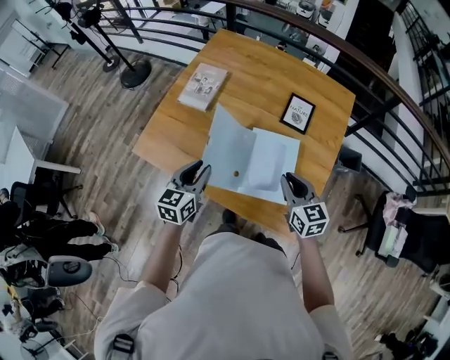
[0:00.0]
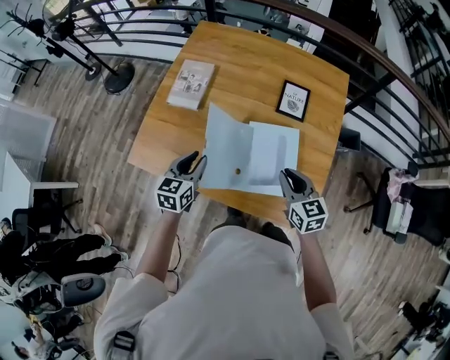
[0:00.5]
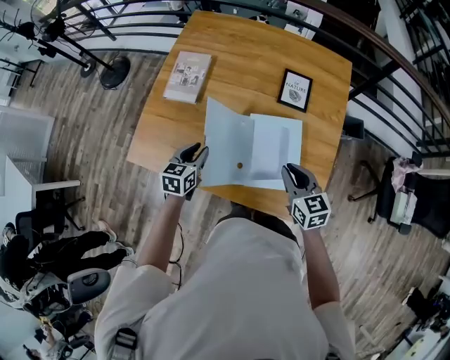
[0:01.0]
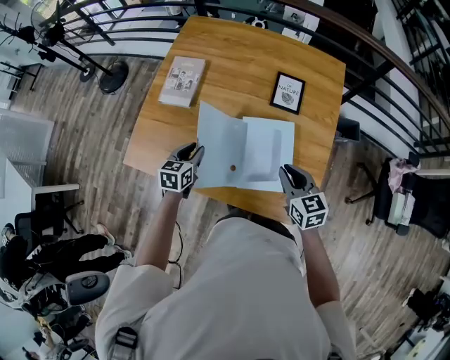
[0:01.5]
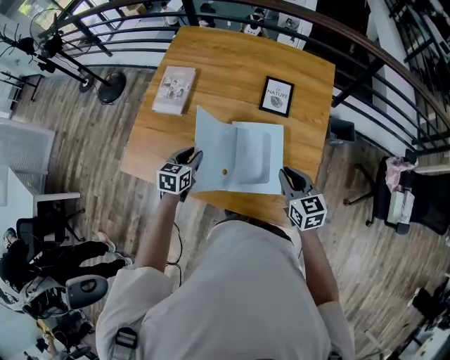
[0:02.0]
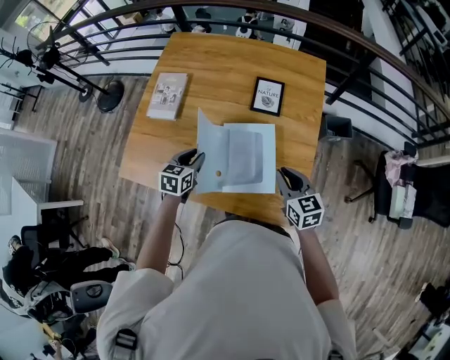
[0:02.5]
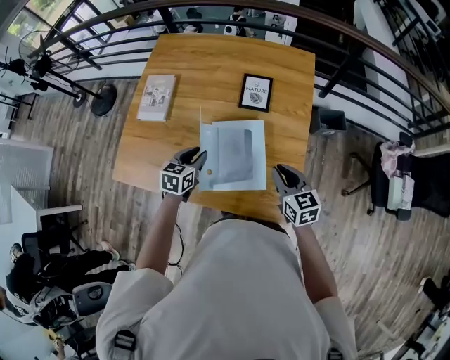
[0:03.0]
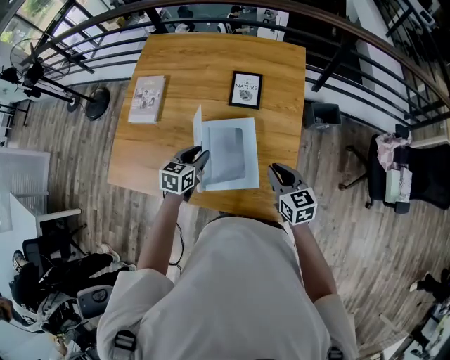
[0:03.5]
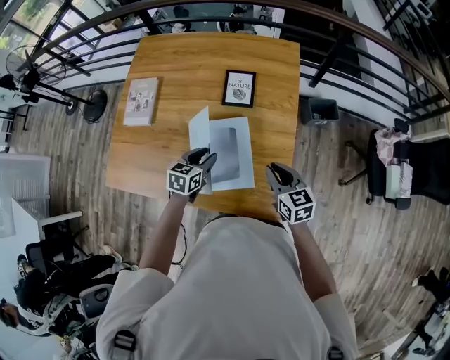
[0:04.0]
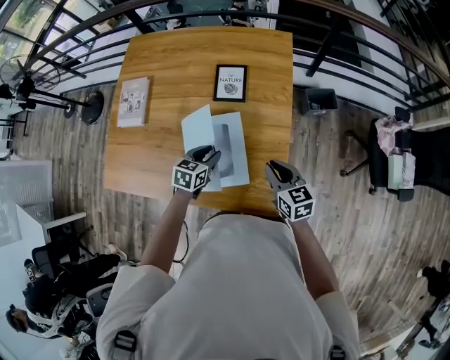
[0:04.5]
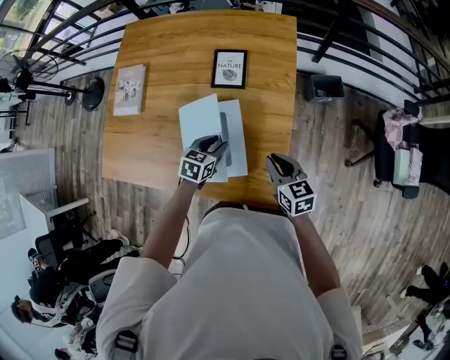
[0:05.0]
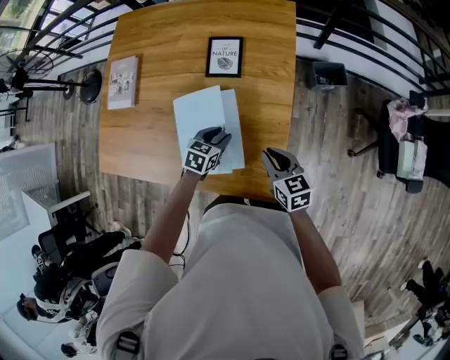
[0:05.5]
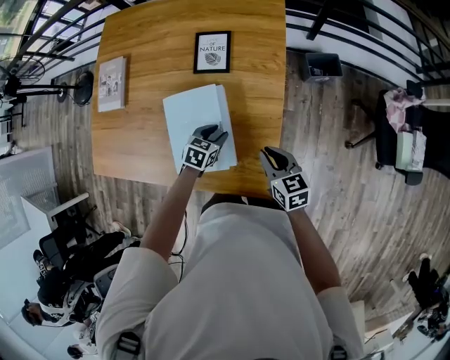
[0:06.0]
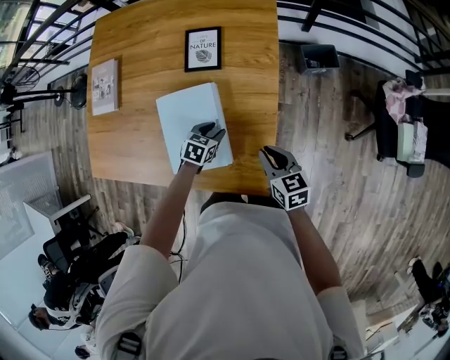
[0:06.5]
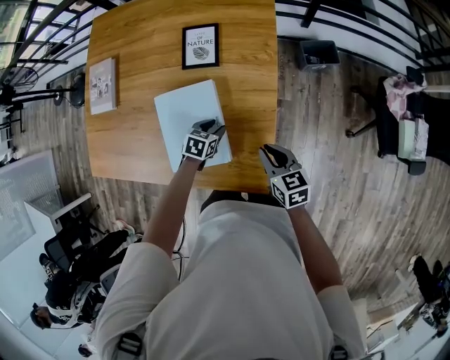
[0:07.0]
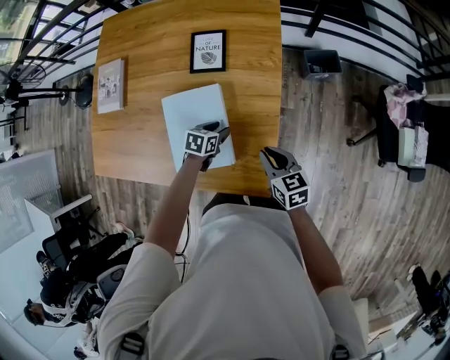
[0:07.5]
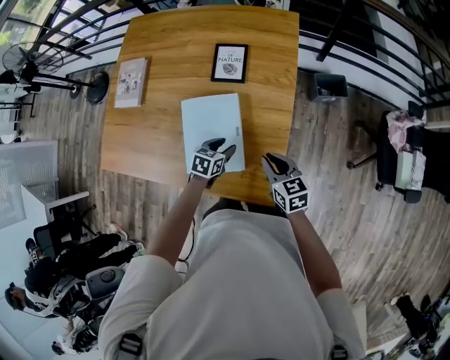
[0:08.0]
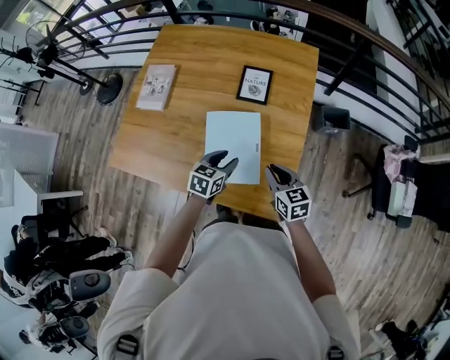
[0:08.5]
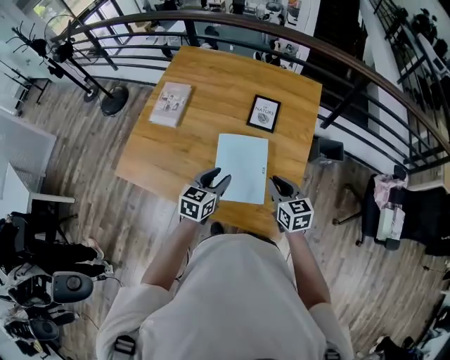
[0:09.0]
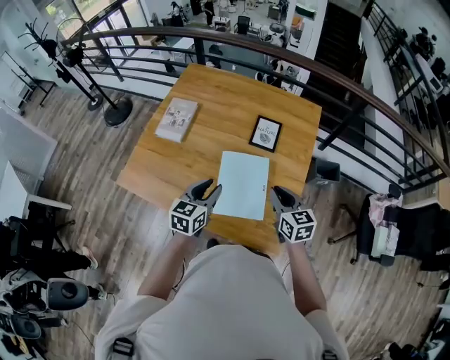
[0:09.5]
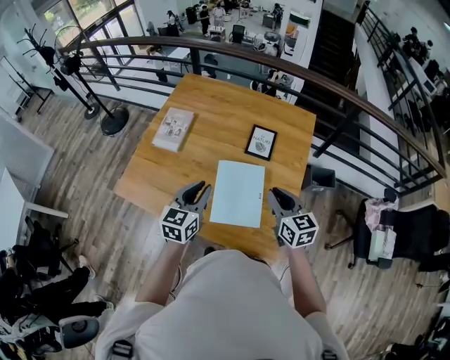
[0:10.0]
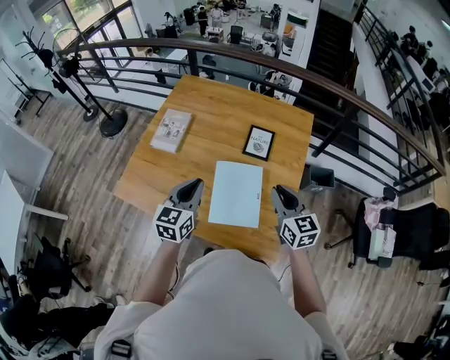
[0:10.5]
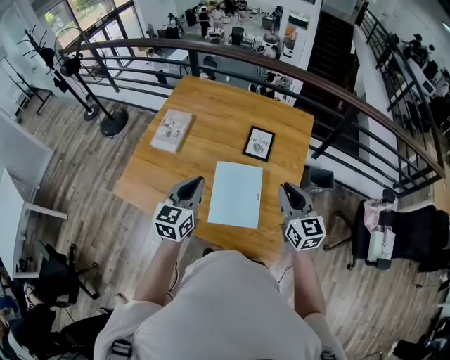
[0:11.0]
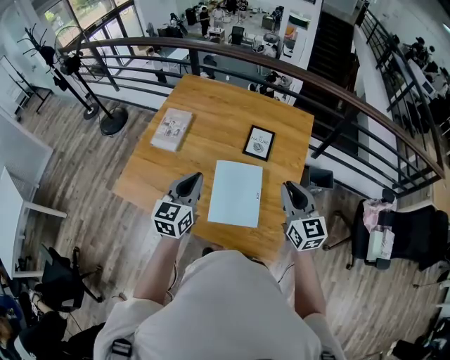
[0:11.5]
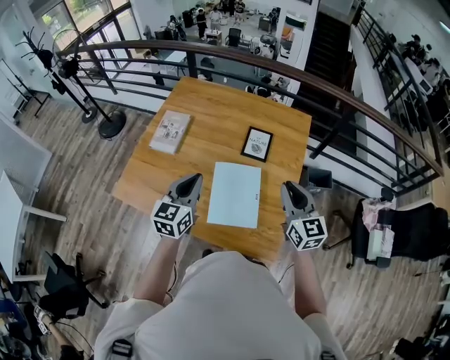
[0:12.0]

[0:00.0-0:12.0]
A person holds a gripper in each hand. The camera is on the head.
0:00.0 to 0:02.0: The right gripper shifts approximately 5 cm to the right; the left gripper is displaced downward and forward by some 15 cm.
0:02.0 to 0:04.0: The right gripper travels to the right by approximately 10 cm, while the left gripper shifts some 20 cm to the right.
0:04.0 to 0:06.0: The right gripper moves downward and to the right, about 10 cm. Meanwhile the left gripper shifts about 20 cm downward and to the right.
0:06.0 to 0:08.0: There are only small adjustments of the grippers.
0:08.0 to 0:10.0: The right gripper is displaced upward and to the left by approximately 25 cm, while the left gripper moves upward and to the left, about 35 cm, points its fingers approximately 30 degrees further upward, and closes its fingers.
0:10.0 to 0:12.0: The right gripper moves upward, approximately 5 cm.

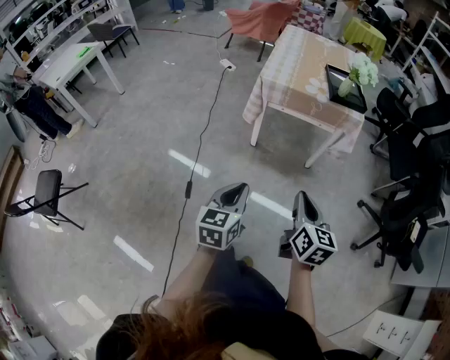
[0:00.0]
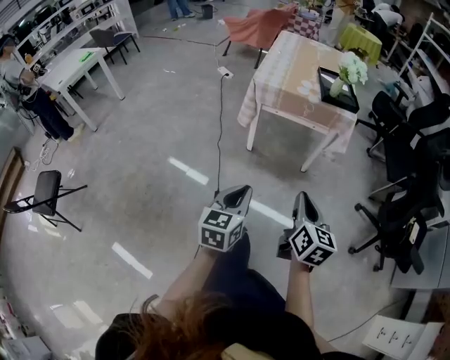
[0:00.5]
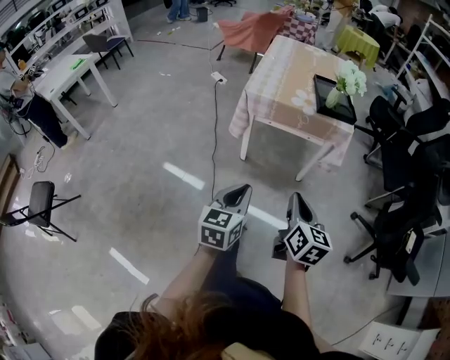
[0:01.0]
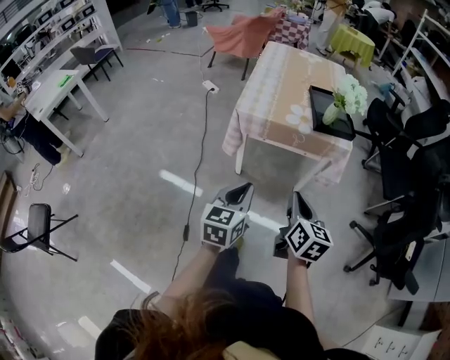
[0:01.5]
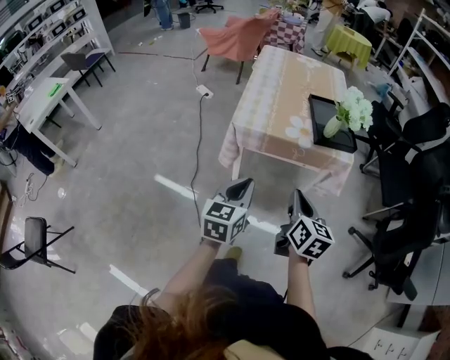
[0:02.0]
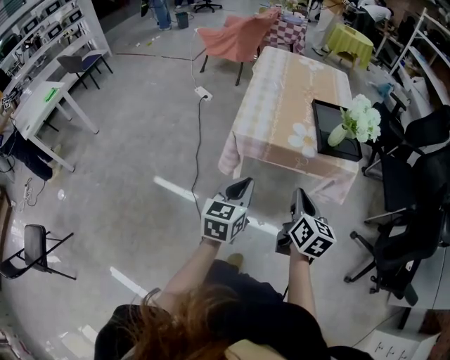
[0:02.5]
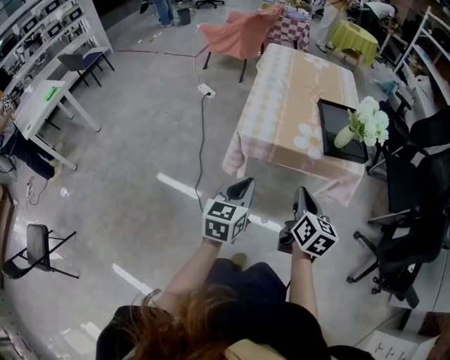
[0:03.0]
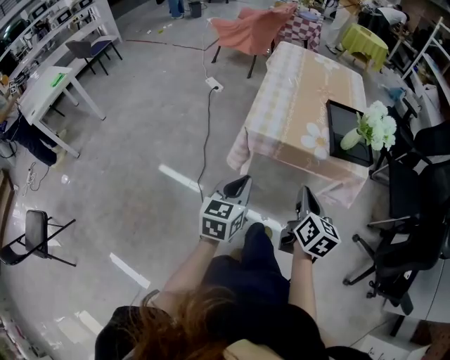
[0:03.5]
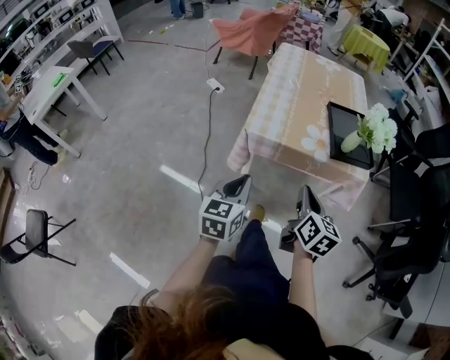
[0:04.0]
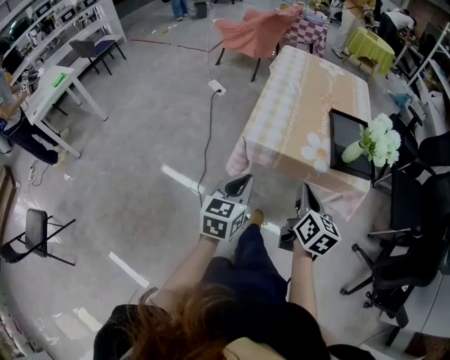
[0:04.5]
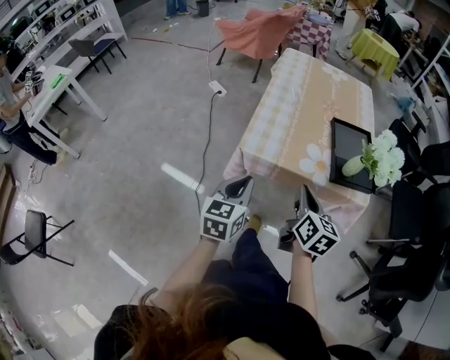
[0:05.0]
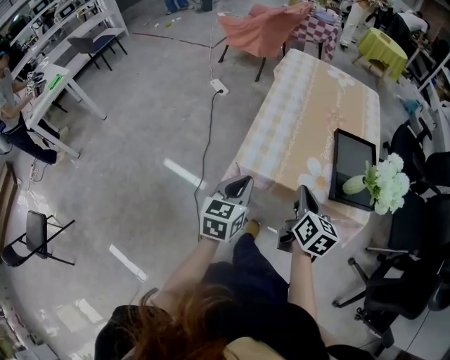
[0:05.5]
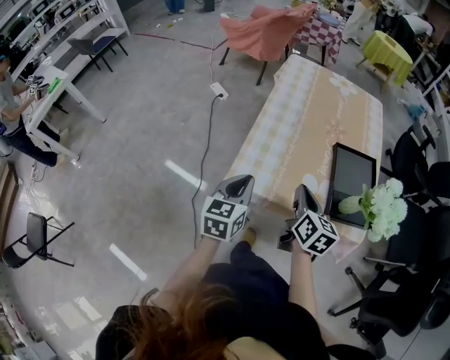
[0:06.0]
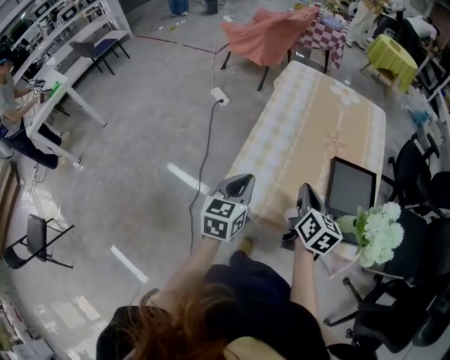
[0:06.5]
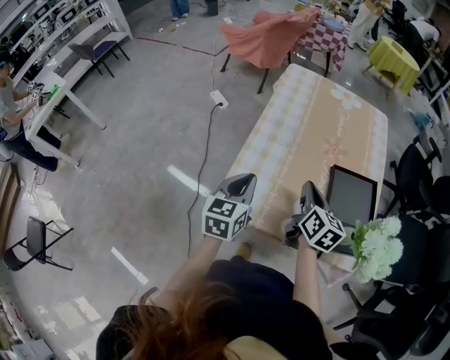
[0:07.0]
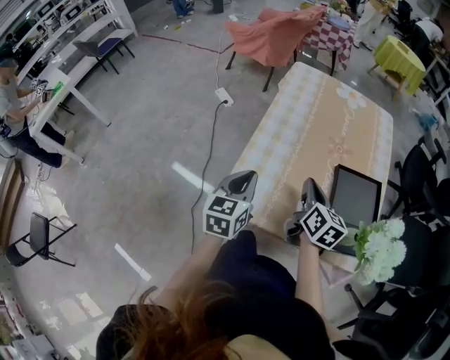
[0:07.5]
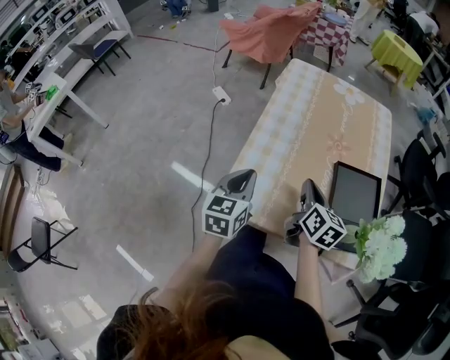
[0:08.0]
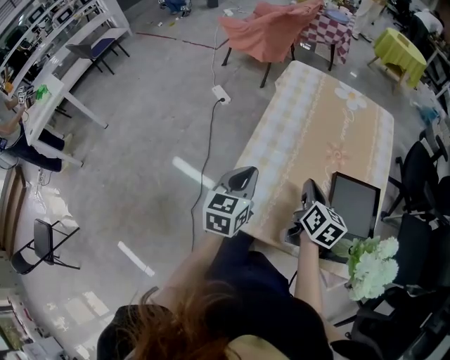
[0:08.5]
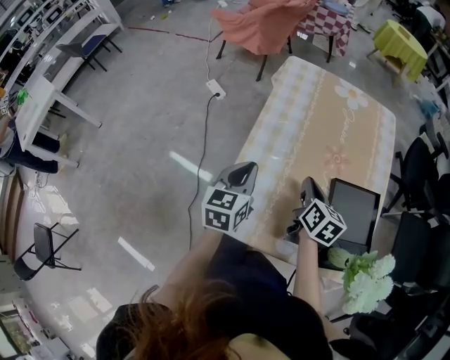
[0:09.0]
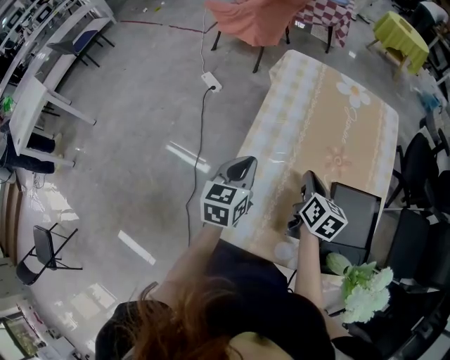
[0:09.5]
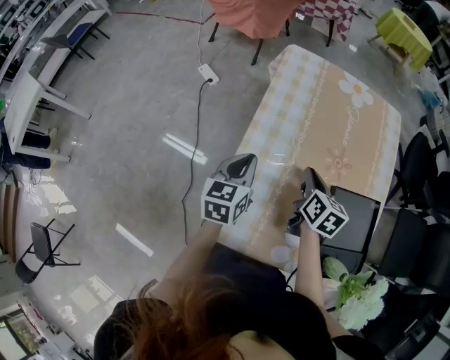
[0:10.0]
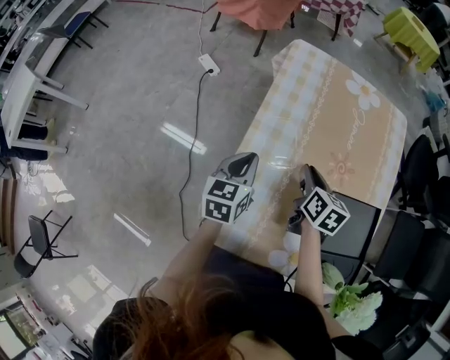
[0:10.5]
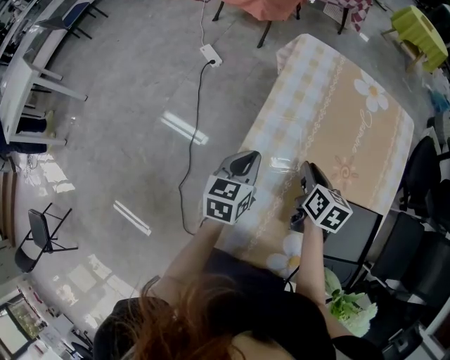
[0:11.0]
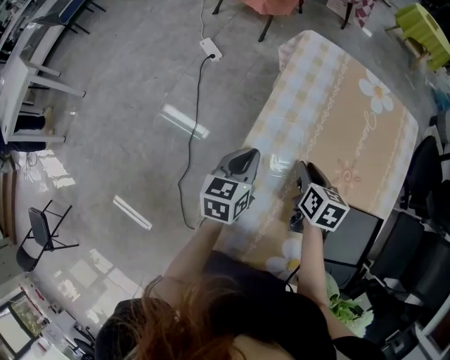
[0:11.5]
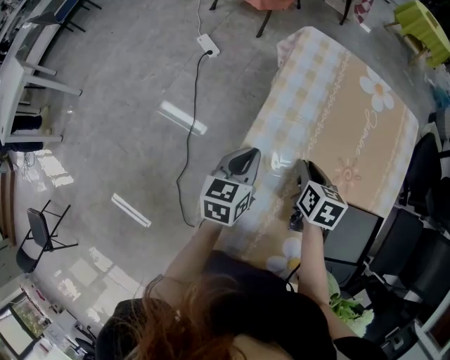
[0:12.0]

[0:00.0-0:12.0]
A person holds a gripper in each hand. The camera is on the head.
0:00.0 to 0:02.0: Both grippers move forward, about 25 cm.
0:02.0 to 0:04.0: The right gripper shifts approximately 10 cm forward. Meanwhile the left gripper is displaced forward and to the left by roughly 10 cm.
0:04.0 to 0:06.0: Both grippers travel together forward, some 25 cm.
0:06.0 to 0:08.0: The two grippers go about 10 cm forward.
0:08.0 to 0:10.0: The grippers both shift forward by approximately 15 cm.
0:10.0 to 0:12.0: The right gripper is displaced downward by some 5 cm. The left gripper changes place by about 5 cm.

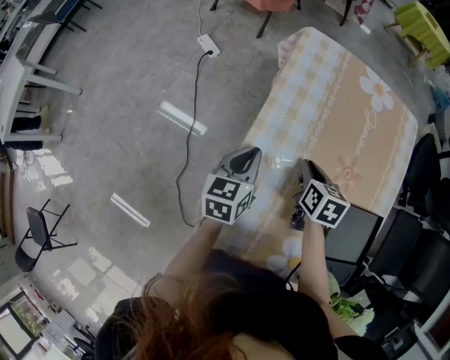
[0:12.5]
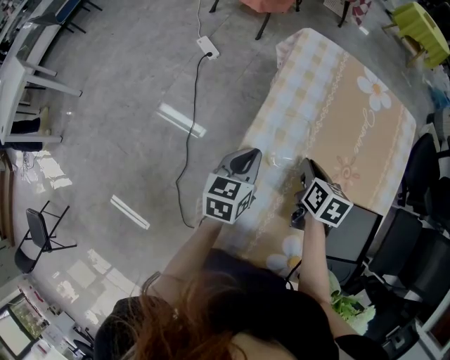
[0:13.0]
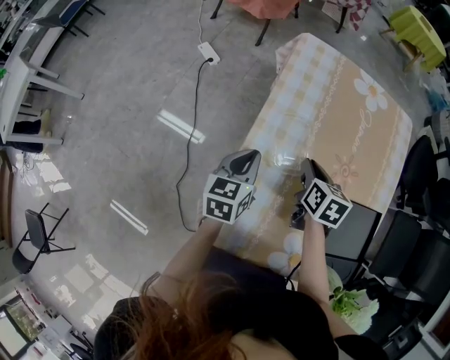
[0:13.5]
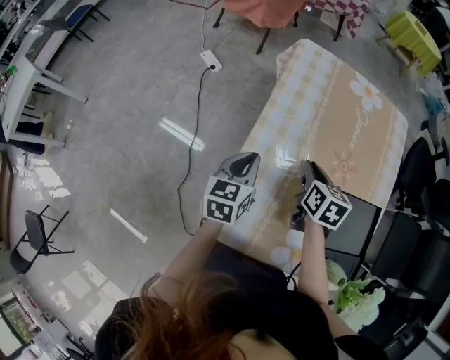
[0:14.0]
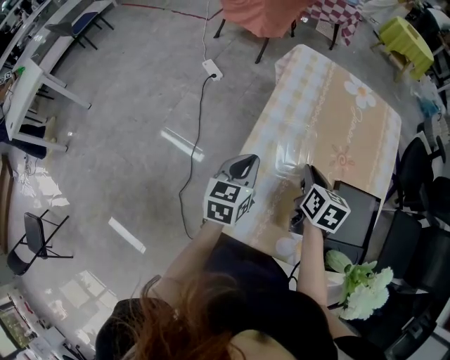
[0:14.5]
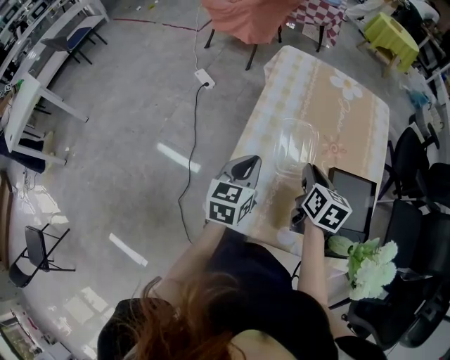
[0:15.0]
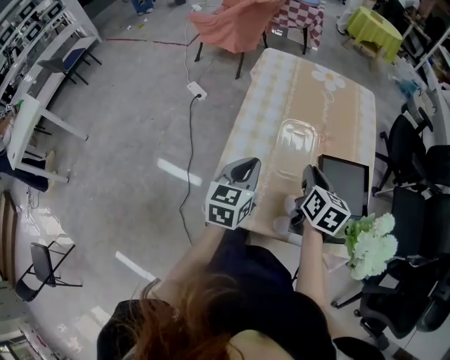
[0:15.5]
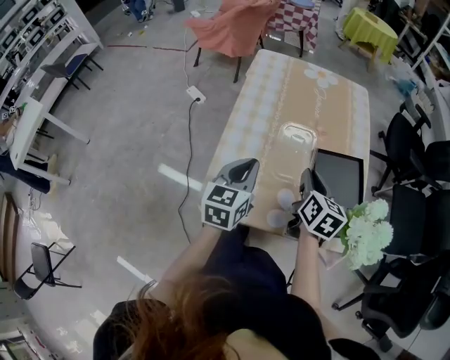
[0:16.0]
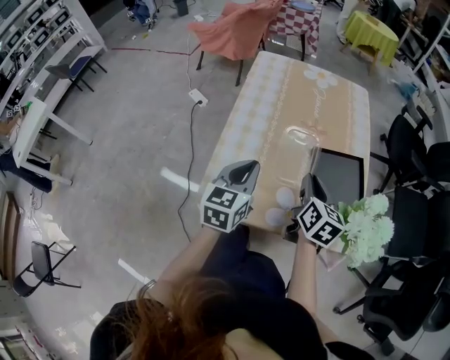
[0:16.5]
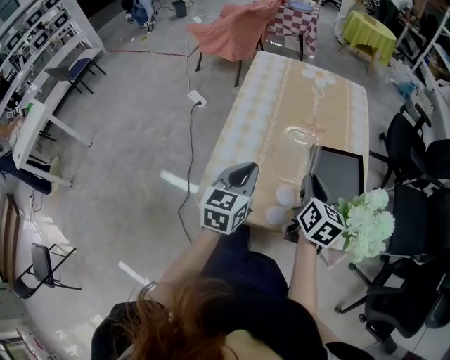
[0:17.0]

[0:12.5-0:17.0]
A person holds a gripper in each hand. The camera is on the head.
0:12.5 to 0:14.5: The two grippers go approximately 10 cm backward and upward.
0:14.5 to 0:17.0: The left gripper is displaced to the right and backward by approximately 15 cm; the right gripper shifts about 20 cm backward and to the right, and changes its angle by roughly 20 degrees.
